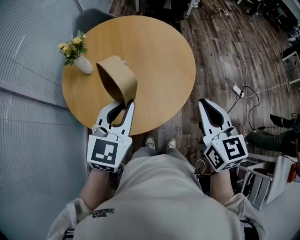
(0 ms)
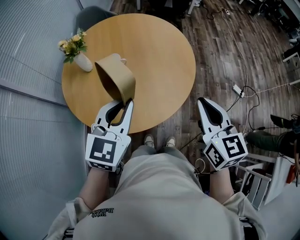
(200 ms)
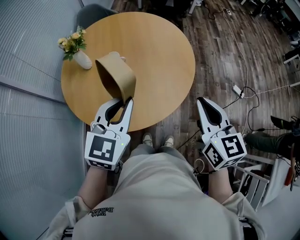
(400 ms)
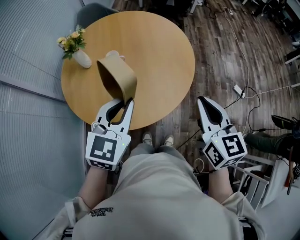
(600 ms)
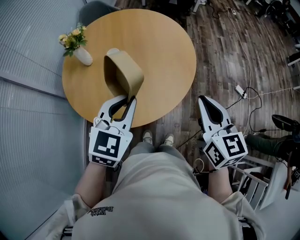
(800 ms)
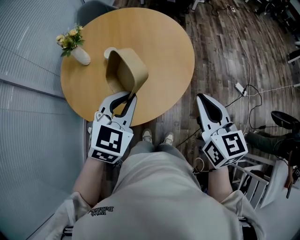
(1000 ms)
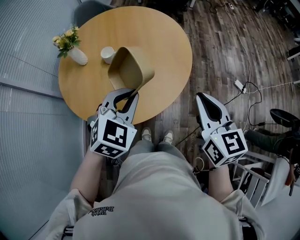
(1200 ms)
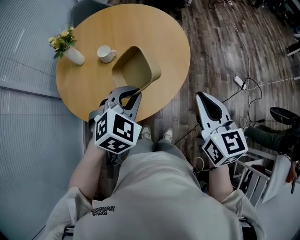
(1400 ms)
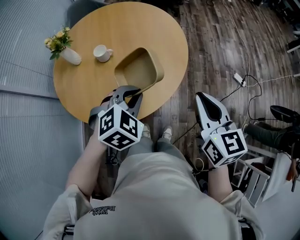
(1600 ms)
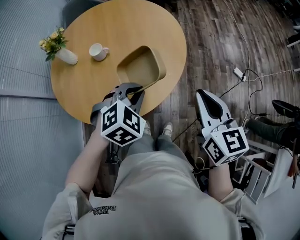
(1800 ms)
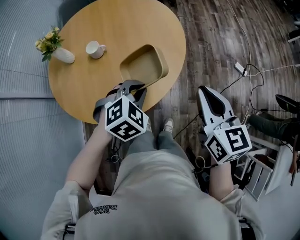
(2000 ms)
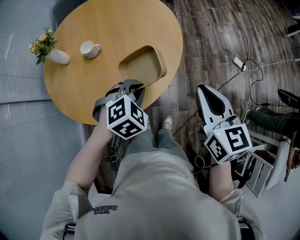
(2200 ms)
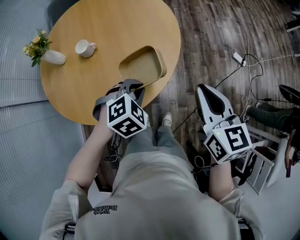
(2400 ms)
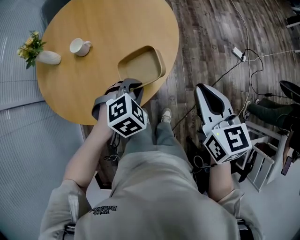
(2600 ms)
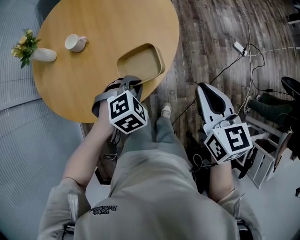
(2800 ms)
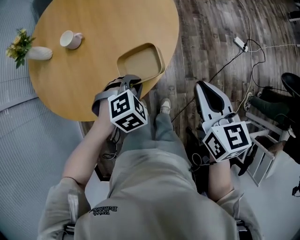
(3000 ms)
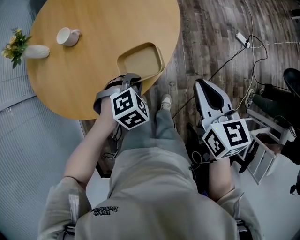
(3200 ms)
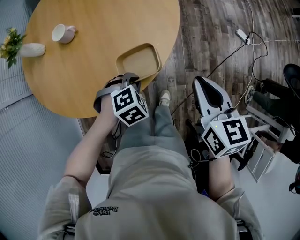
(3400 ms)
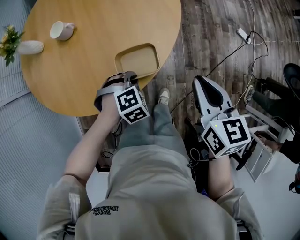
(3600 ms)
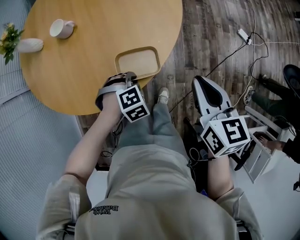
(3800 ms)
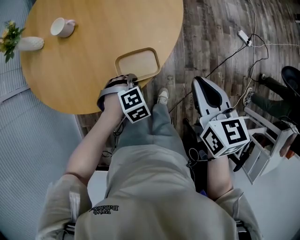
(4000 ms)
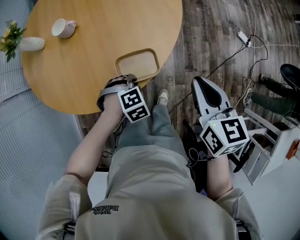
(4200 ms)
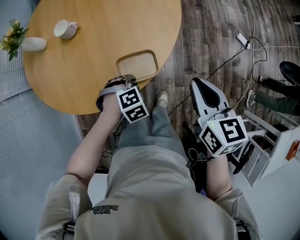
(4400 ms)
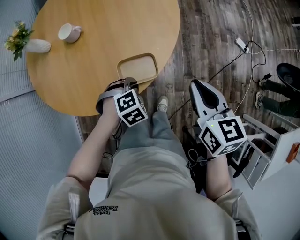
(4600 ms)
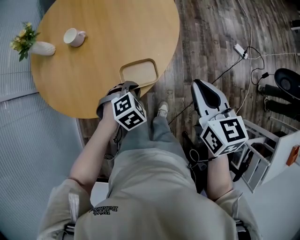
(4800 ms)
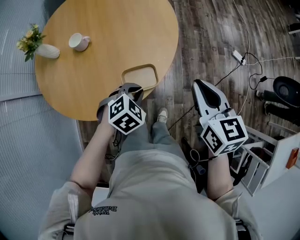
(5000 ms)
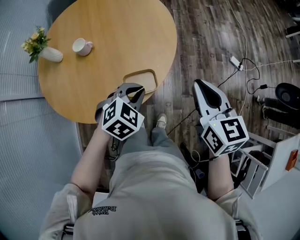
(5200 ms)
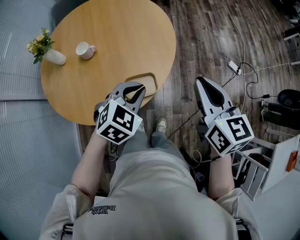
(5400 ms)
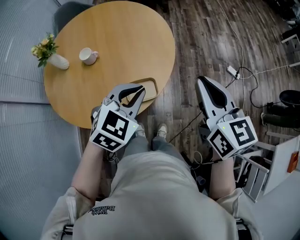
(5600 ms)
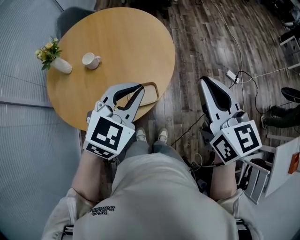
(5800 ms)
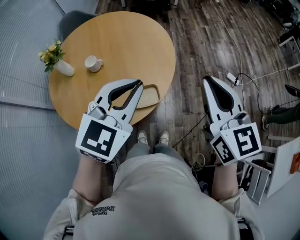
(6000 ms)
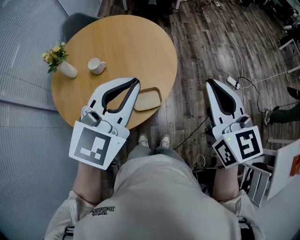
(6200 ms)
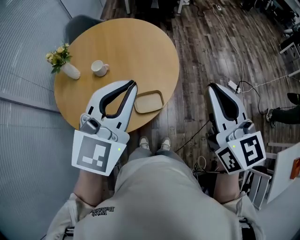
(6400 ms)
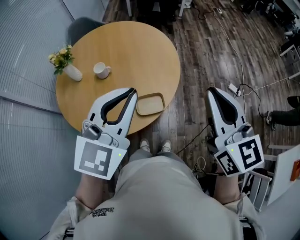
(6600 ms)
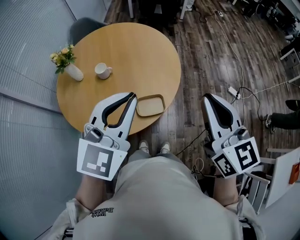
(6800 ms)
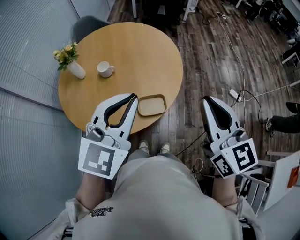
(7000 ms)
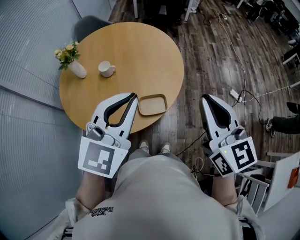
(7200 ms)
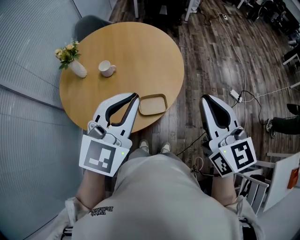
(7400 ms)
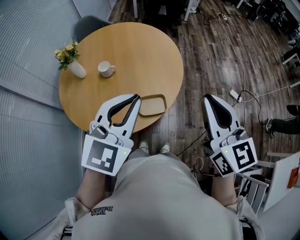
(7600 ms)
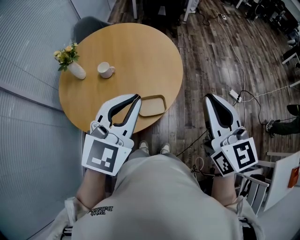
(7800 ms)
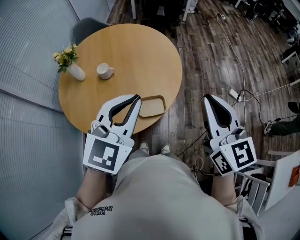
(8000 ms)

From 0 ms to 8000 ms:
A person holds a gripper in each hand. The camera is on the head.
From 0 ms to 1600 ms: The right gripper travels to the right by some 5 cm, while the left gripper heads to the right and downward, covering some 15 cm, and tilts its fingers approximately 30 degrees downward.
From 1600 ms to 3200 ms: The right gripper travels downward by approximately 15 cm; the left gripper heads downward, covering some 20 cm, and rotates about 20 degrees.
From 3200 ms to 4800 ms: The left gripper reaches roughly 10 cm downward, then returns.
From 4800 ms to 6400 ms: The right gripper shifts approximately 25 cm upward, and changes its angle by roughly 30 degrees. Meanwhile the left gripper shifts roughly 40 cm upward, and points its fingers about 60 degrees further upward.
From 6400 ms to 8000 ms: There are only small adjustments of the grippers.

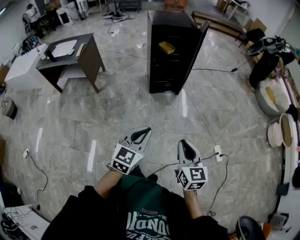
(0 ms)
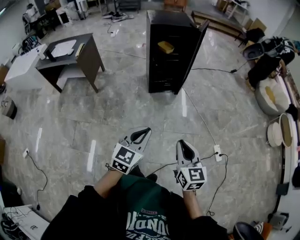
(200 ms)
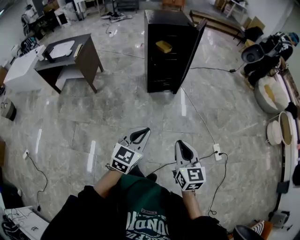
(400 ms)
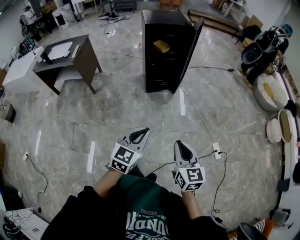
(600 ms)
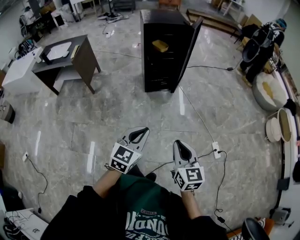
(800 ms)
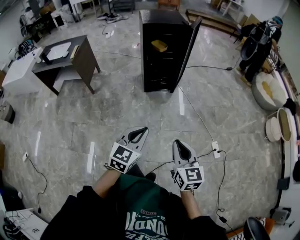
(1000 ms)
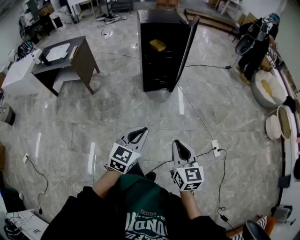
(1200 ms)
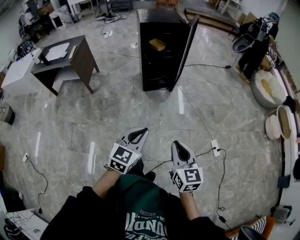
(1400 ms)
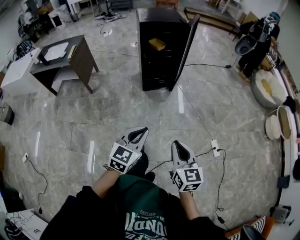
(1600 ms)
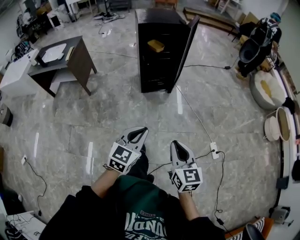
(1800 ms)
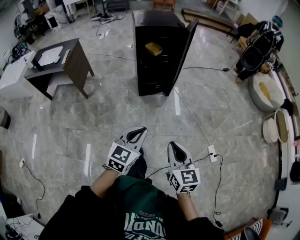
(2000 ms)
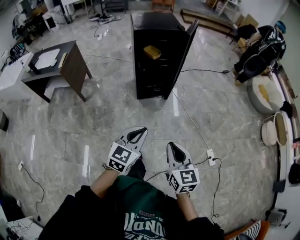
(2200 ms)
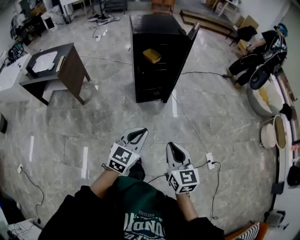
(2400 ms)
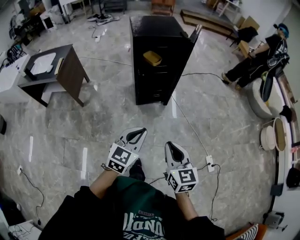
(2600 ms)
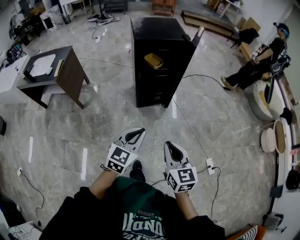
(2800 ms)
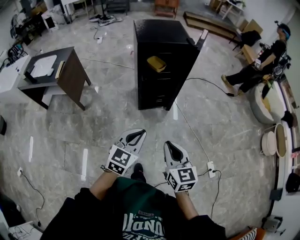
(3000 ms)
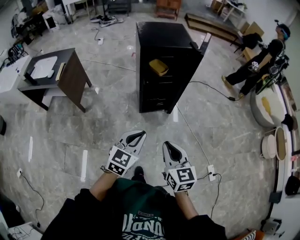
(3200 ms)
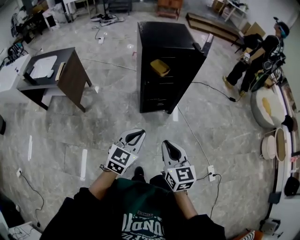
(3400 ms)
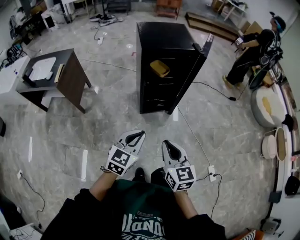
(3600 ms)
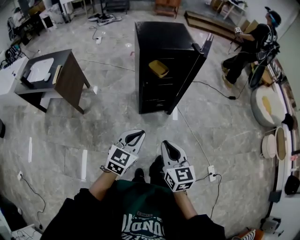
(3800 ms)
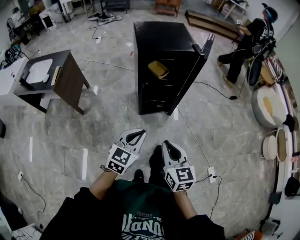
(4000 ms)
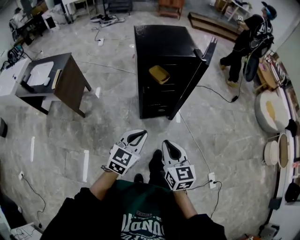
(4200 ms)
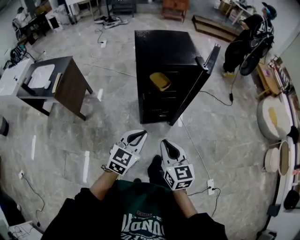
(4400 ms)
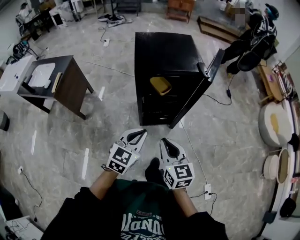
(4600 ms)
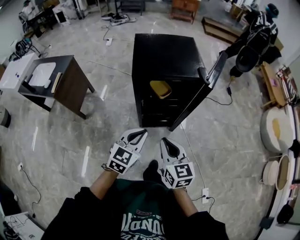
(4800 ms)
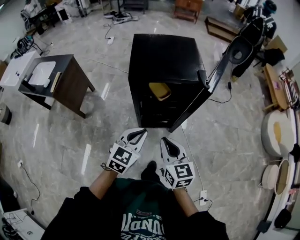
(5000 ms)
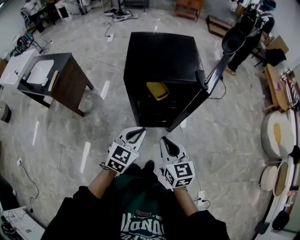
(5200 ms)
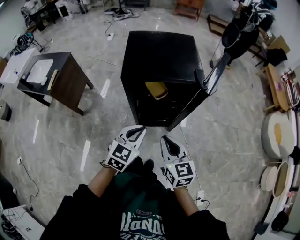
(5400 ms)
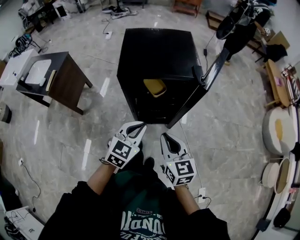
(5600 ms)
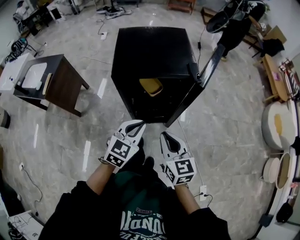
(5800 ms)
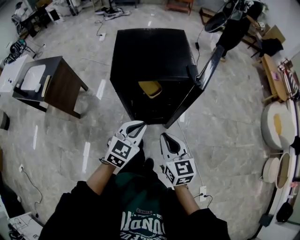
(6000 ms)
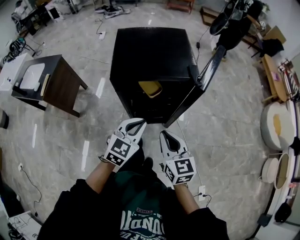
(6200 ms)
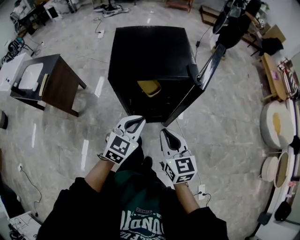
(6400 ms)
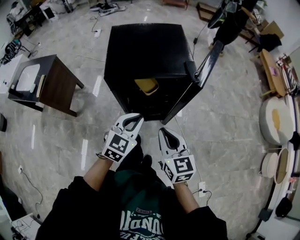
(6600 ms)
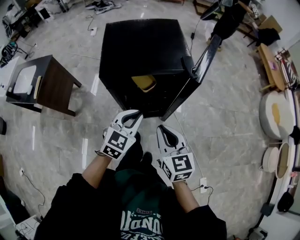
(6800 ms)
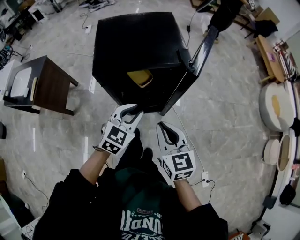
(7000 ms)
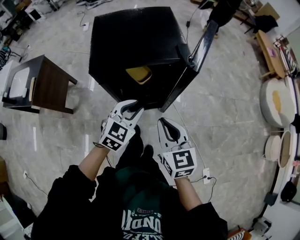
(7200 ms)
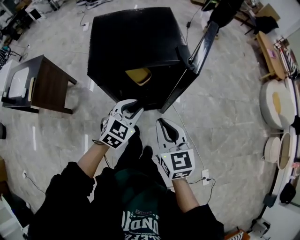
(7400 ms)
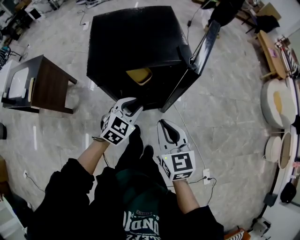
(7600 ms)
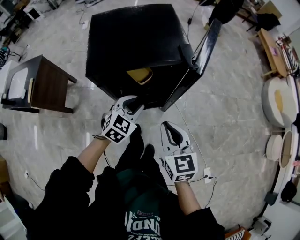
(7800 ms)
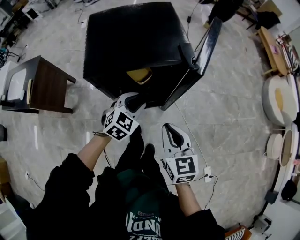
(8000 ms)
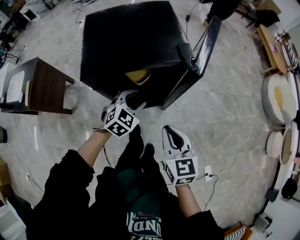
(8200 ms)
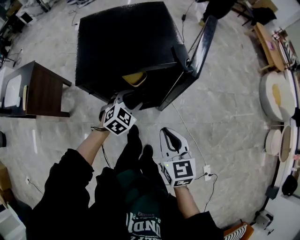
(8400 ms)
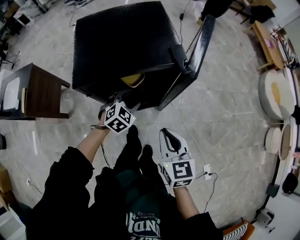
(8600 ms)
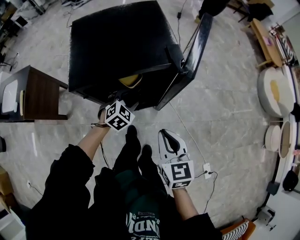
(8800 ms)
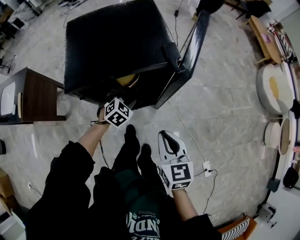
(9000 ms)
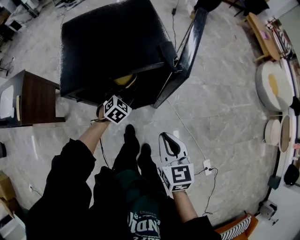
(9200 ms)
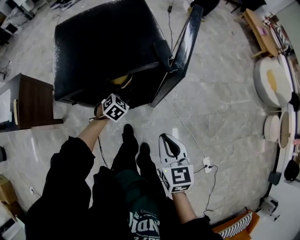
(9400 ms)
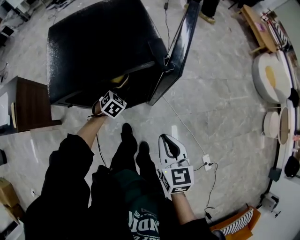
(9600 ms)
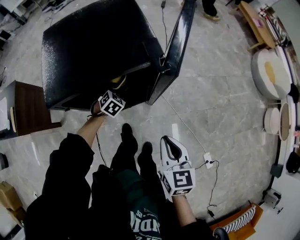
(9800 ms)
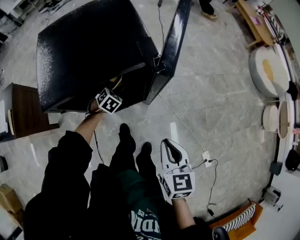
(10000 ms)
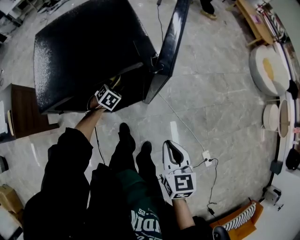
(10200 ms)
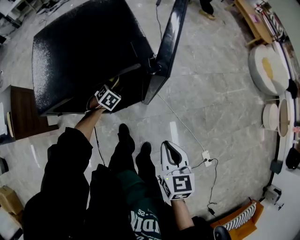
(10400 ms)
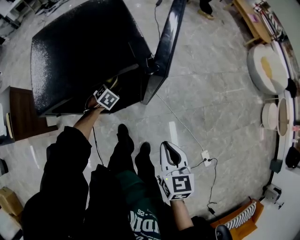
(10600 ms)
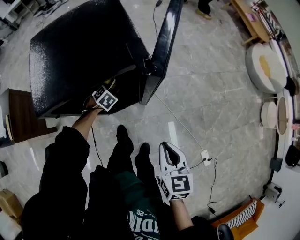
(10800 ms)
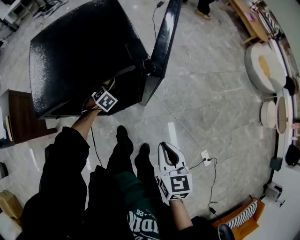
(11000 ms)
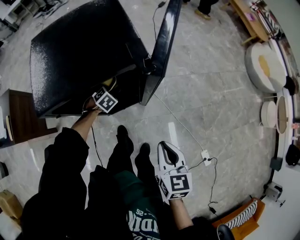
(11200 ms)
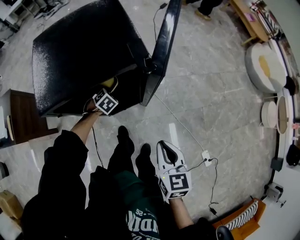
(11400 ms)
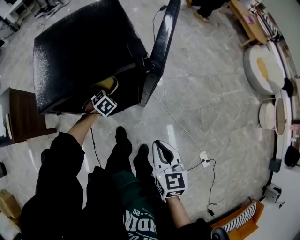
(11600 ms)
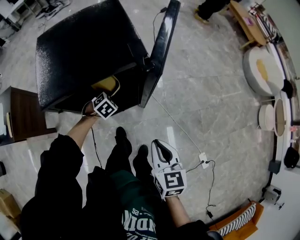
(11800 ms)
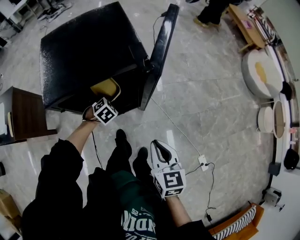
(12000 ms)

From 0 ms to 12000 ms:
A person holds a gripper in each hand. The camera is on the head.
From 0 ms to 1600 ms: The grippers make only small movements.
From 1600 ms to 3000 ms: Both grippers travel together forward, roughly 25 cm.
From 3000 ms to 4400 ms: The grippers both shift forward by some 20 cm.
From 4400 ms to 6000 ms: Both grippers move forward and to the right, about 20 cm.
From 6000 ms to 7600 ms: The left gripper shifts approximately 10 cm forward and downward, and opens up.
From 7600 ms to 9000 ms: The right gripper changes place by approximately 5 cm. Meanwhile the left gripper travels downward and forward by roughly 15 cm, and opens.
From 9000 ms to 10400 ms: The left gripper heads downward and forward, covering approximately 15 cm; the right gripper is displaced to the right by some 5 cm.
From 10400 ms to 12000 ms: The left gripper moves backward, about 5 cm, and closes.

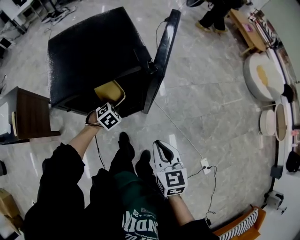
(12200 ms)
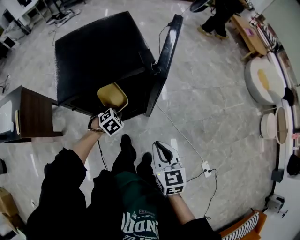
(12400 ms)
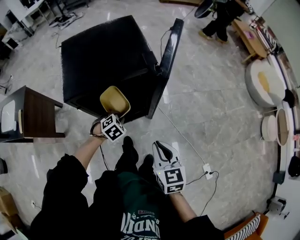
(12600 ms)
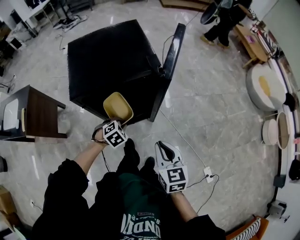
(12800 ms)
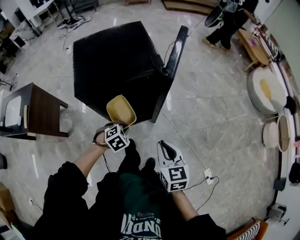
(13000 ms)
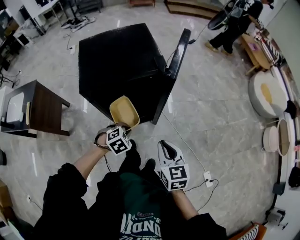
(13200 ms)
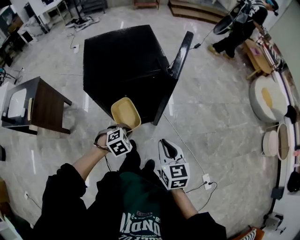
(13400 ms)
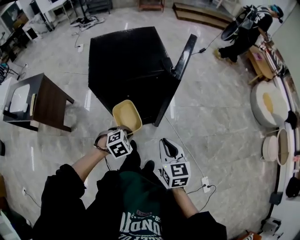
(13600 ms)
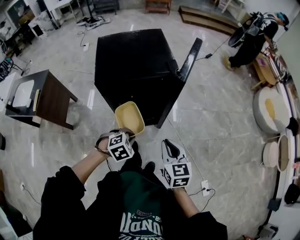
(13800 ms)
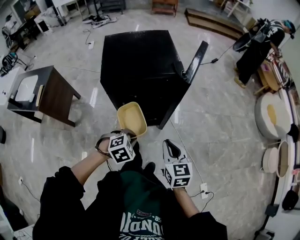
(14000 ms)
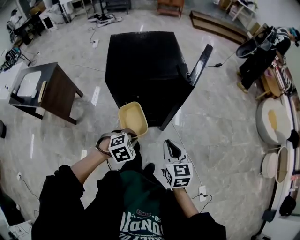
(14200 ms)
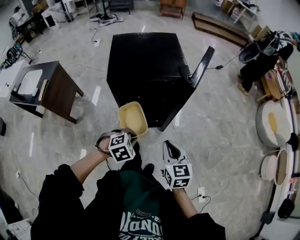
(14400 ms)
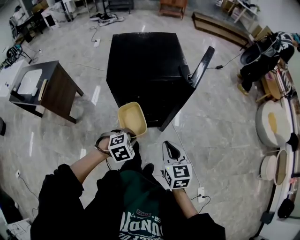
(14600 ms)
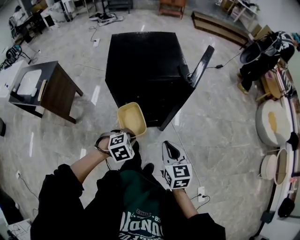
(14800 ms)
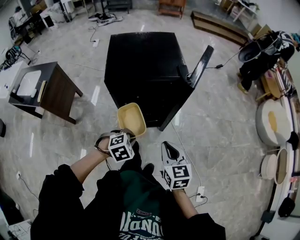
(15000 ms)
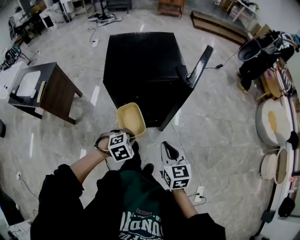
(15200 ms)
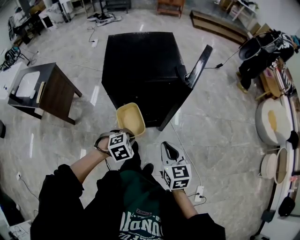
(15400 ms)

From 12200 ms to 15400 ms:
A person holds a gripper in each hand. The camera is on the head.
From 12200 ms to 13800 ms: The left gripper travels backward and upward by approximately 25 cm. The right gripper travels backward by approximately 5 cm.
From 13800 ms to 15400 ms: The grippers move only a little.
